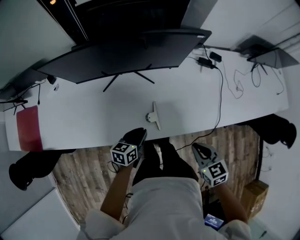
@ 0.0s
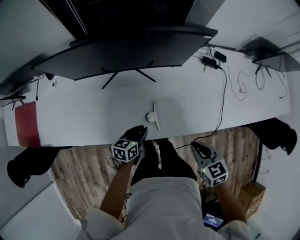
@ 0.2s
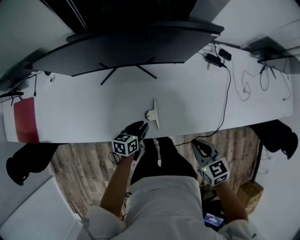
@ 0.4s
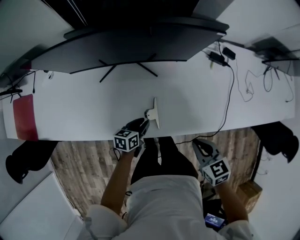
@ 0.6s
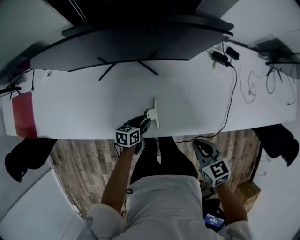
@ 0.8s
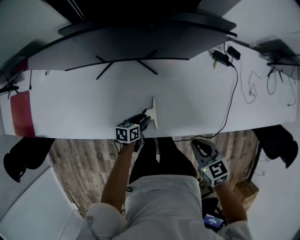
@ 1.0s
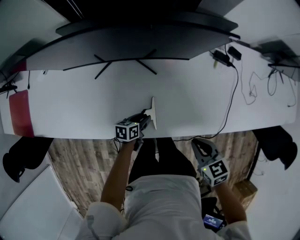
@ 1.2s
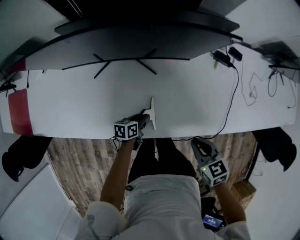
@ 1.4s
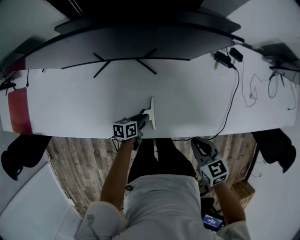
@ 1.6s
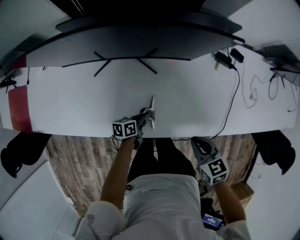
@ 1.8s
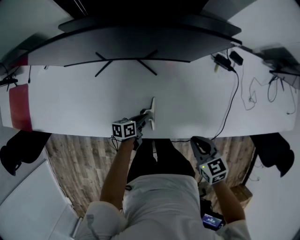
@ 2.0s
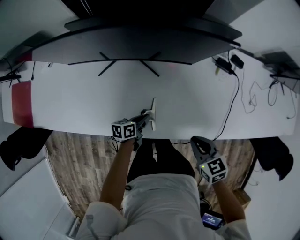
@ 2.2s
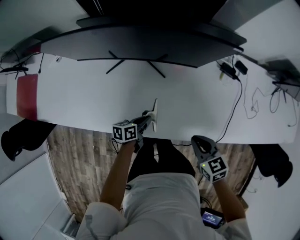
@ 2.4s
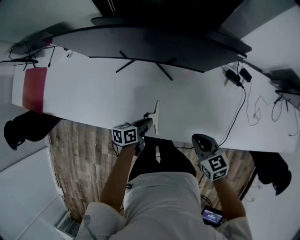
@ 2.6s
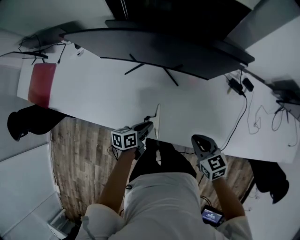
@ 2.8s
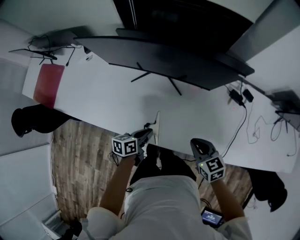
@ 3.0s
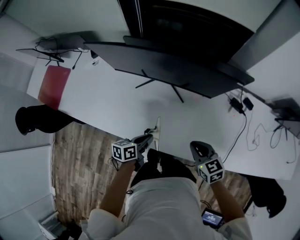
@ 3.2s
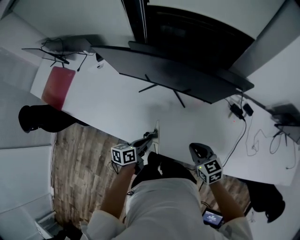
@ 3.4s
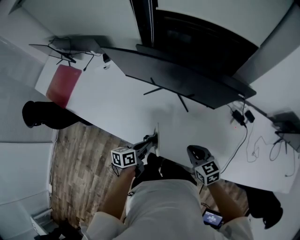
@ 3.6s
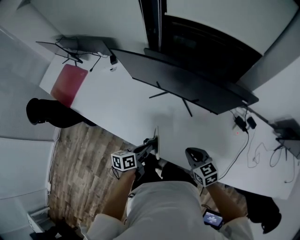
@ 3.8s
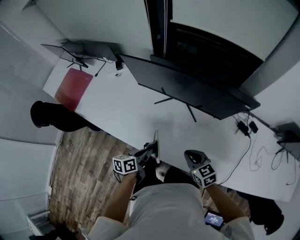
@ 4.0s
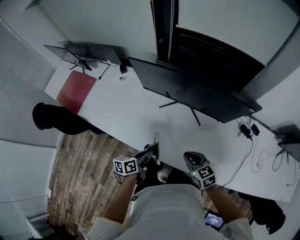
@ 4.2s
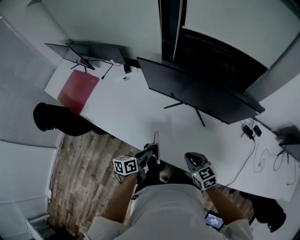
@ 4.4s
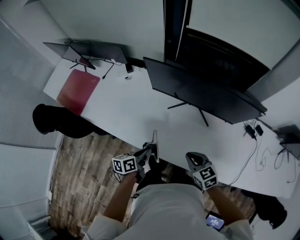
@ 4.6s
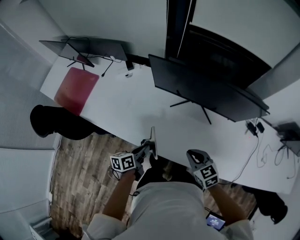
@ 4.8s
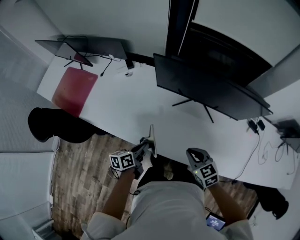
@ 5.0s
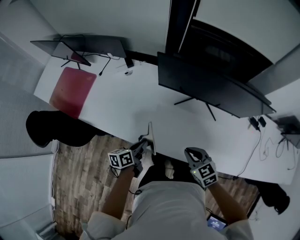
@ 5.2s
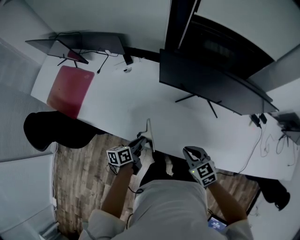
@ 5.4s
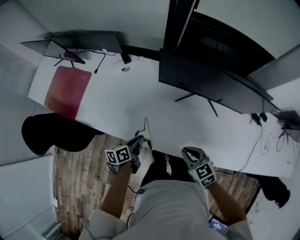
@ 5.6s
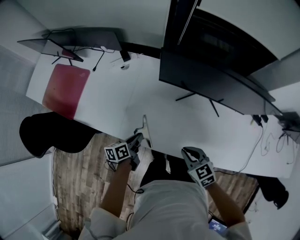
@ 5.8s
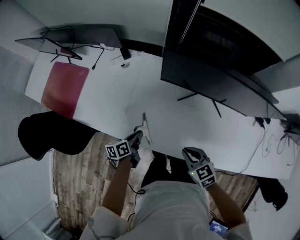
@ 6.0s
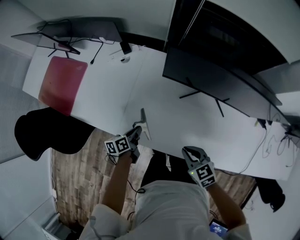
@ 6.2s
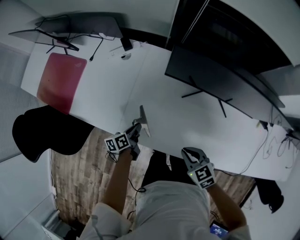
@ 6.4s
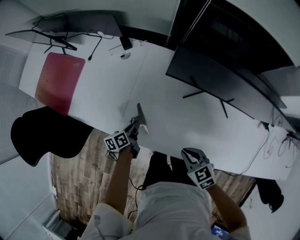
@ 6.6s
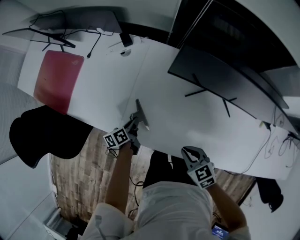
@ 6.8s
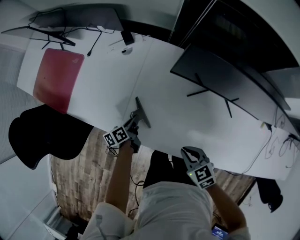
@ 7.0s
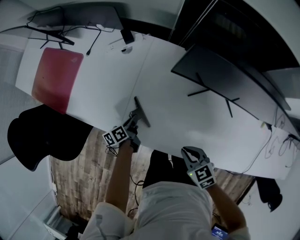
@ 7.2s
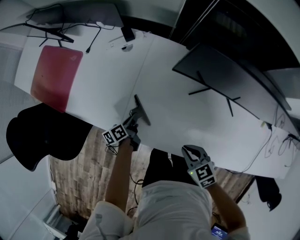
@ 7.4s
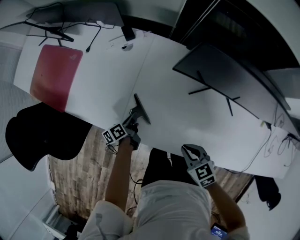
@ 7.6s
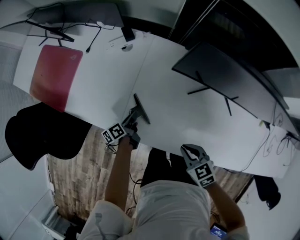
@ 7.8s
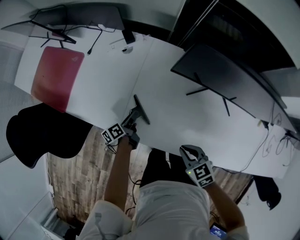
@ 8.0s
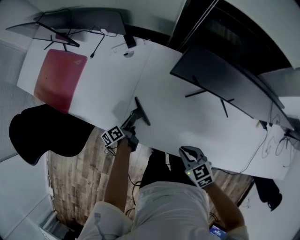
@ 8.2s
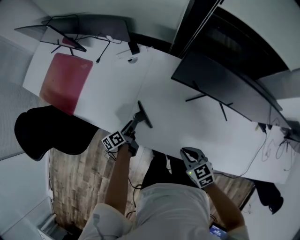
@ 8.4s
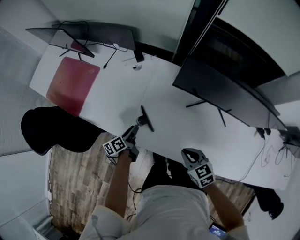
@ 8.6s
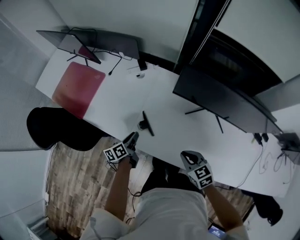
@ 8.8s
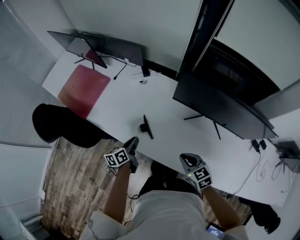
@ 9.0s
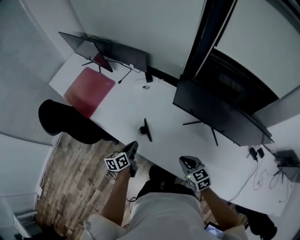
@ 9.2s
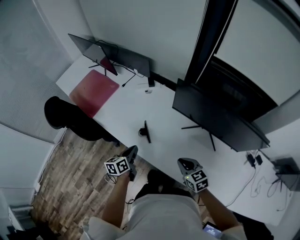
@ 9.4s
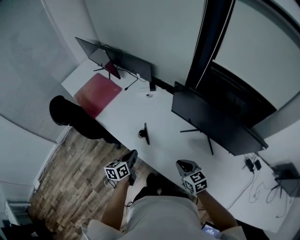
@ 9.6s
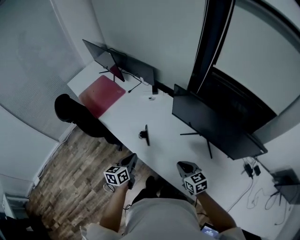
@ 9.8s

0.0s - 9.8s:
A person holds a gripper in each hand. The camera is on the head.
0.0s - 1.4s: The right gripper is displaced forward and downward by approximately 10 cm. Meanwhile the left gripper moves downward, approximately 15 cm, and changes its angle by roughly 20 degrees.
1.4s - 2.8s: The left gripper moves upward, about 10 cm, and closes its fingers; the right gripper changes place by some 5 cm.
2.8s - 4.2s: The left gripper is displaced to the left and upward by roughly 15 cm; the right gripper shifts roughly 15 cm to the left.
4.2s - 5.6s: The right gripper goes approximately 20 cm to the left, while the left gripper shifts roughly 25 cm to the left and forward.
5.6s - 7.0s: The right gripper shifts about 10 cm downward. The left gripper moves downward and forward, approximately 15 cm.
7.0s - 8.4s: The left gripper shifts by some 5 cm, and opens its fingers.
8.4s - 9.8s: The left gripper shifts some 30 cm upward and backward, rotates about 40 degrees, and closes up, while the right gripper is displaced upward and to the right by about 15 cm.

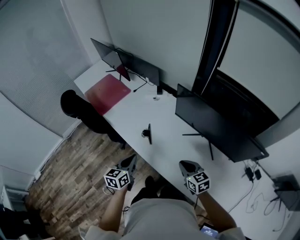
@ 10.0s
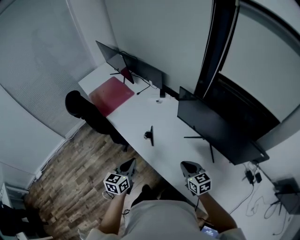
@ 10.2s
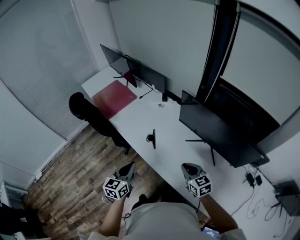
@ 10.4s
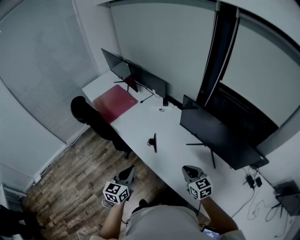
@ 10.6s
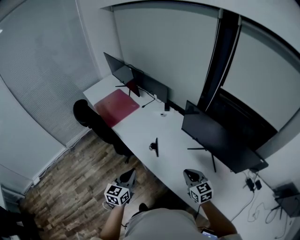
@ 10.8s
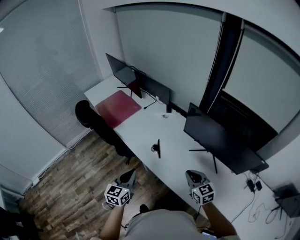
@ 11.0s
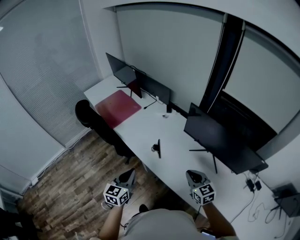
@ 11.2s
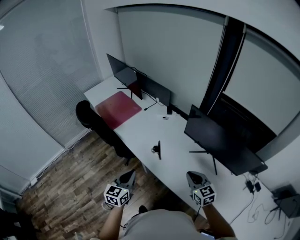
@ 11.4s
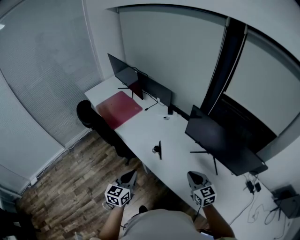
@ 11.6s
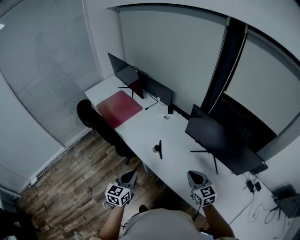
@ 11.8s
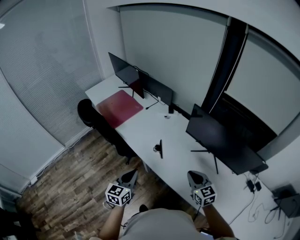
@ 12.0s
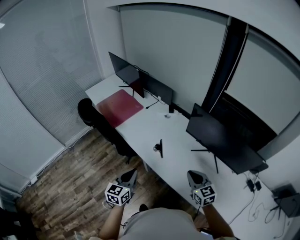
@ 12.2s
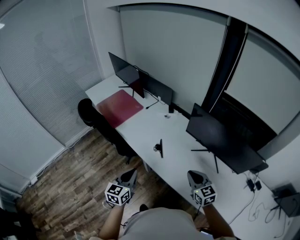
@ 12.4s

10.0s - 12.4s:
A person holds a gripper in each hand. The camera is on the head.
10.0s - 11.2s: The right gripper shifts roughly 5 cm upward. Meanwhile the left gripper shifts about 10 cm to the left and upward.
11.2s - 12.4s: There are only small adjustments of the grippers.

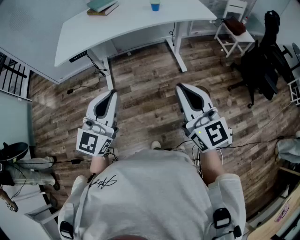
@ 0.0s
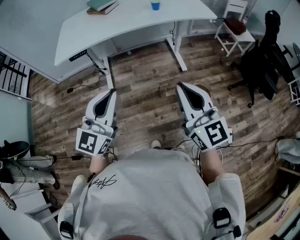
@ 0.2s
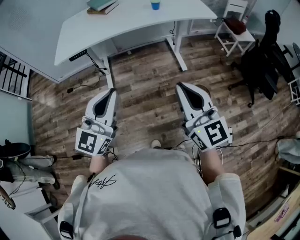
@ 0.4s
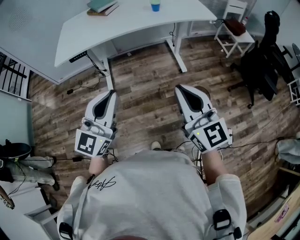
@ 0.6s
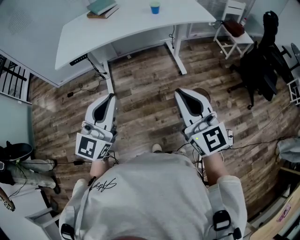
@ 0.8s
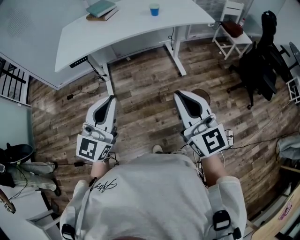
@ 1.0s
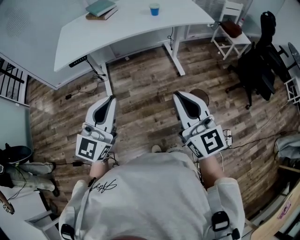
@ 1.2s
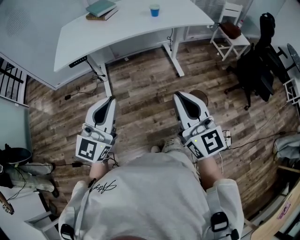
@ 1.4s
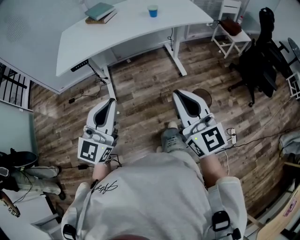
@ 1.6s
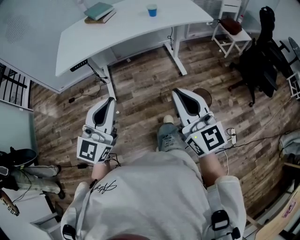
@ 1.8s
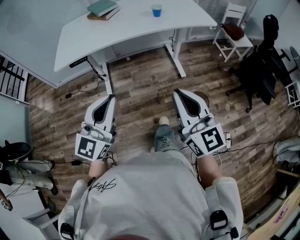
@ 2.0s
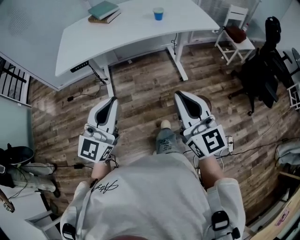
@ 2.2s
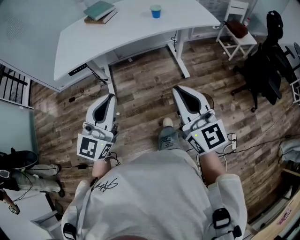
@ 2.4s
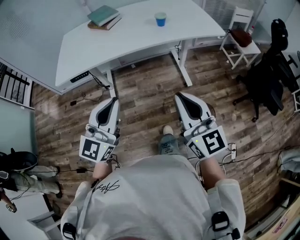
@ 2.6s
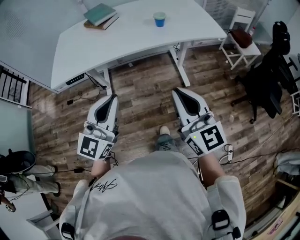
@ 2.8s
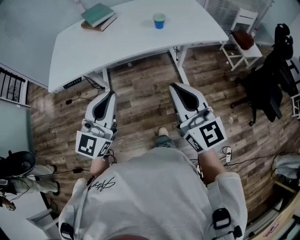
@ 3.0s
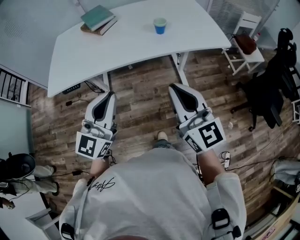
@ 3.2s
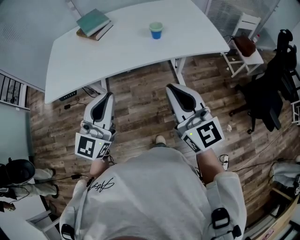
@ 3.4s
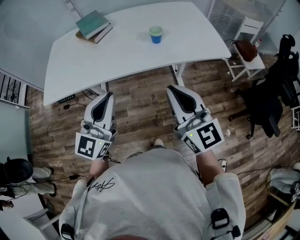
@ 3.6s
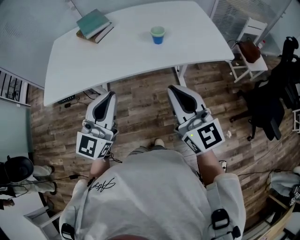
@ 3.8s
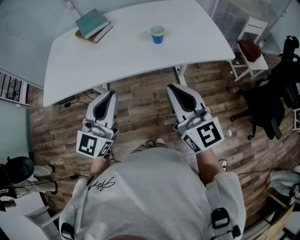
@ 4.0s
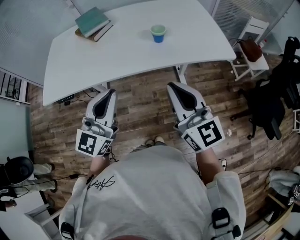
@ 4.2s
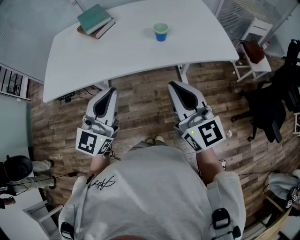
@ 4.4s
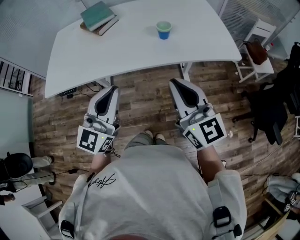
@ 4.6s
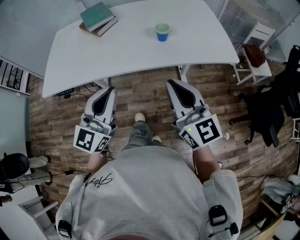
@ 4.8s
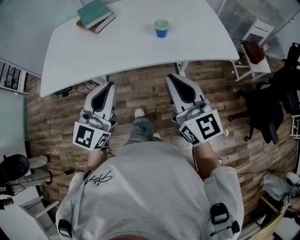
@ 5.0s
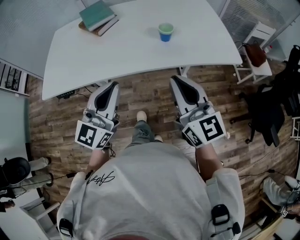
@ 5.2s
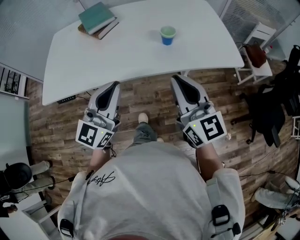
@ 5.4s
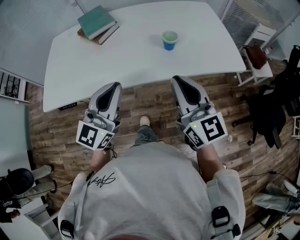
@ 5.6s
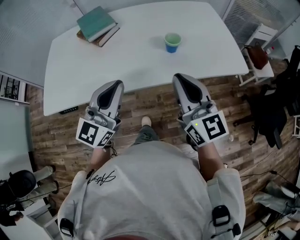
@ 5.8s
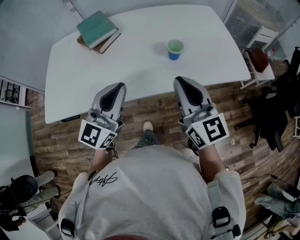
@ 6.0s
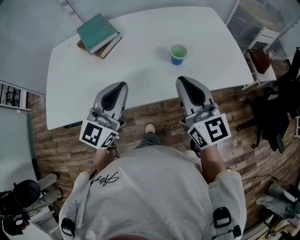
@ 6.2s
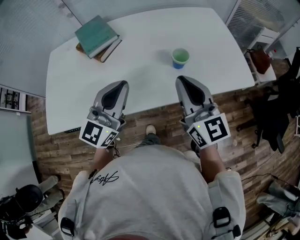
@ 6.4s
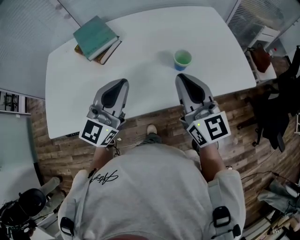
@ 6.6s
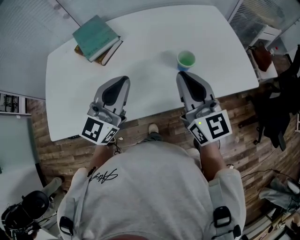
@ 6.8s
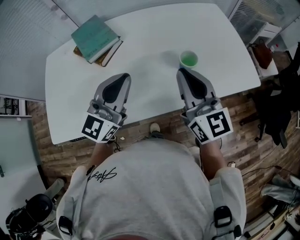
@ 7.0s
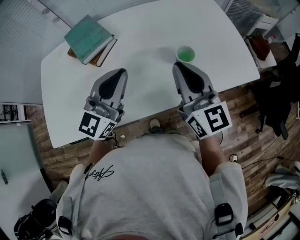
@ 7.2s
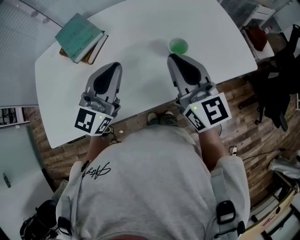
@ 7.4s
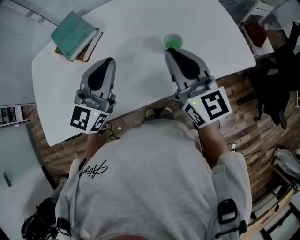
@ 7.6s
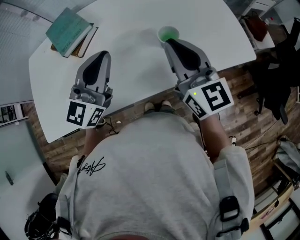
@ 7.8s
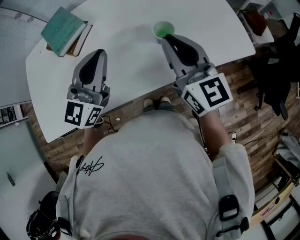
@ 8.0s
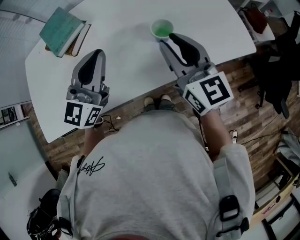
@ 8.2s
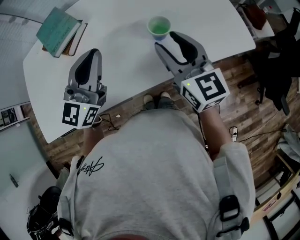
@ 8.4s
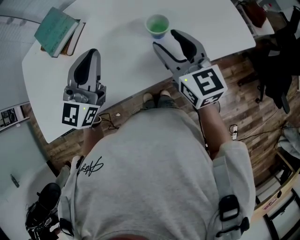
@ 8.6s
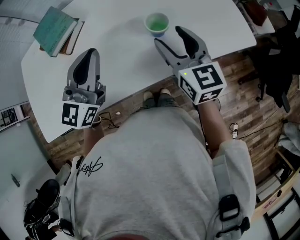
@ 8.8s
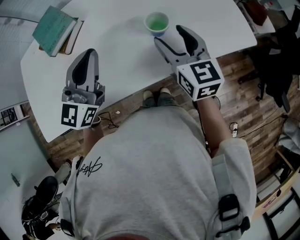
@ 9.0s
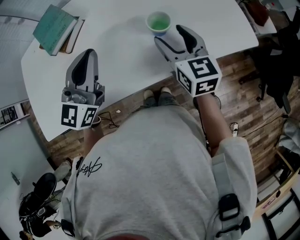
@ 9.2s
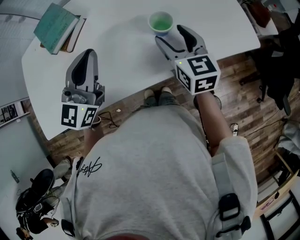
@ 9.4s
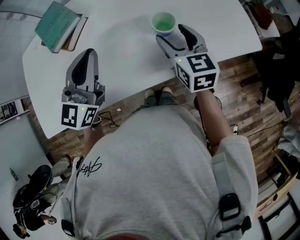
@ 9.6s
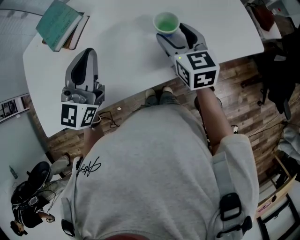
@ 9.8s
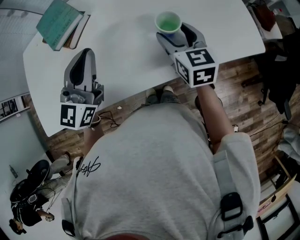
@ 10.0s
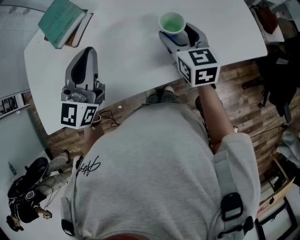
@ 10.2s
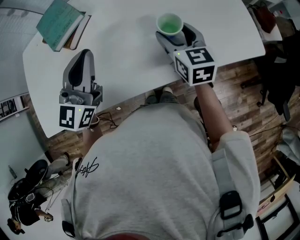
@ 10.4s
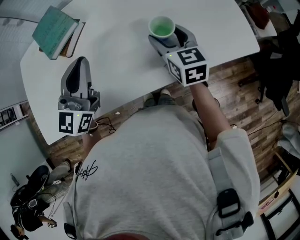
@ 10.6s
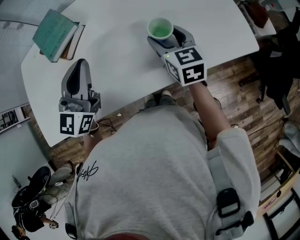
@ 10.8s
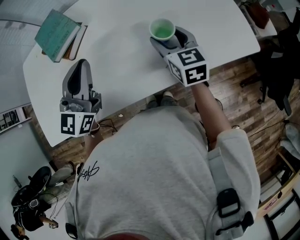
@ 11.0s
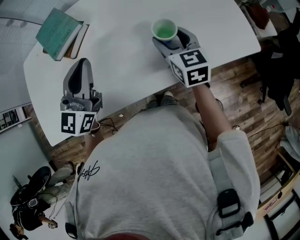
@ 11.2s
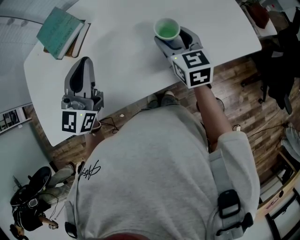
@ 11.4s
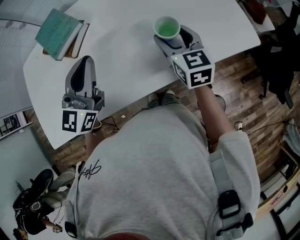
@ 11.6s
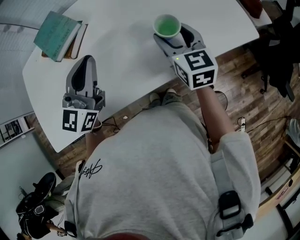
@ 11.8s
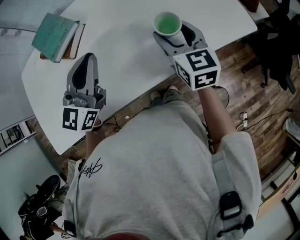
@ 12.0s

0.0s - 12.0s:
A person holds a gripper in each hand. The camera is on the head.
0.0s - 1.6s: The grippers make only small movements.
1.6s - 3.0s: The grippers both shift forward by about 20 cm.
3.0s - 4.4s: Both grippers move forward, some 15 cm.
4.4s - 6.0s: The grippers both shift forward by some 15 cm.
6.0s - 7.6s: Both grippers move forward, approximately 15 cm.
7.6s - 9.0s: The right gripper shifts some 10 cm downward, and opens.
9.0s - 10.4s: The right gripper shifts about 5 cm downward.
10.4s - 12.0s: The right gripper goes some 5 cm backward.
